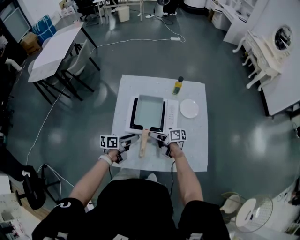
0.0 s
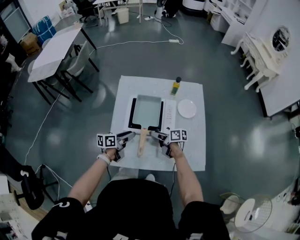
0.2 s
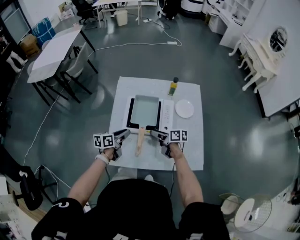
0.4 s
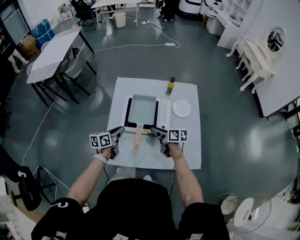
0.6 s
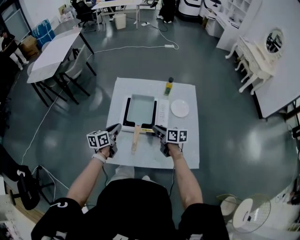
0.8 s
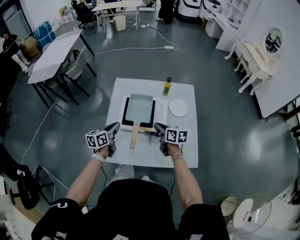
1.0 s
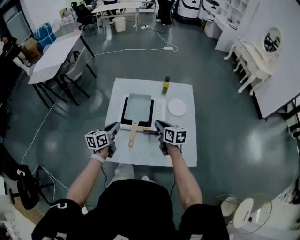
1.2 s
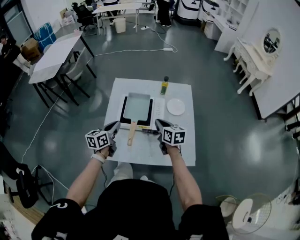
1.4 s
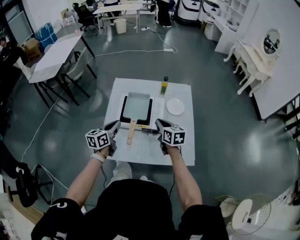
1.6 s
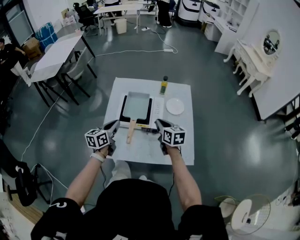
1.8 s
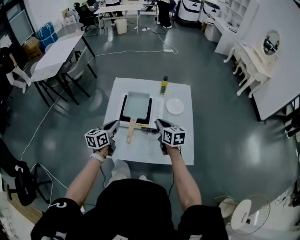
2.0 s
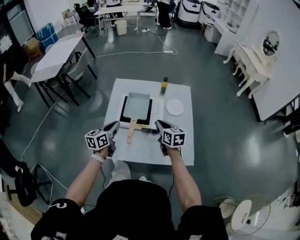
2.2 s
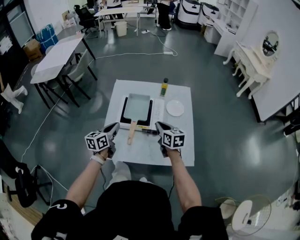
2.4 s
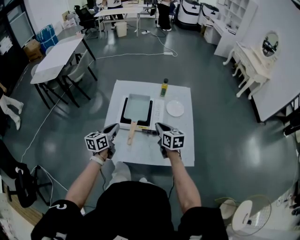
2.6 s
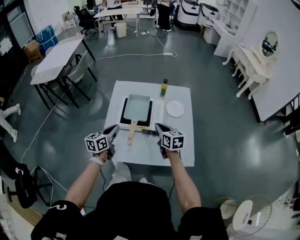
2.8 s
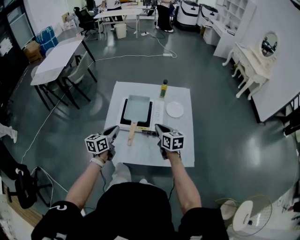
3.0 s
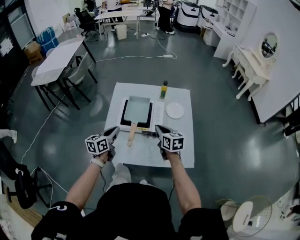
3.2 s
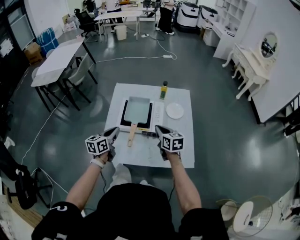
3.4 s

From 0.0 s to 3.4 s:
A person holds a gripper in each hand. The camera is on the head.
From 0.0 s to 1.6 s: The right gripper heads upward, covering roughly 15 cm, changes its angle by about 50 degrees, and closes its fingers.

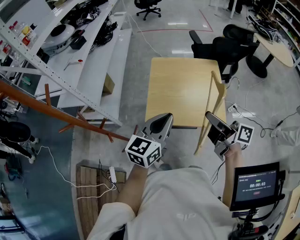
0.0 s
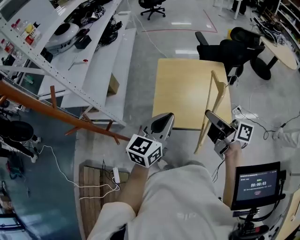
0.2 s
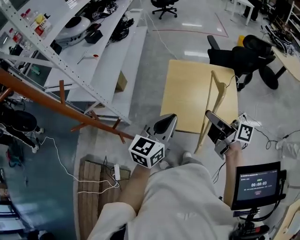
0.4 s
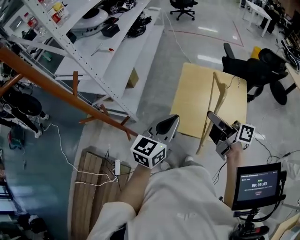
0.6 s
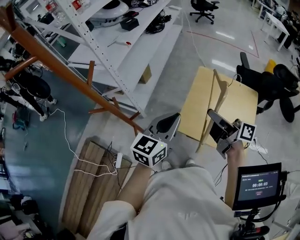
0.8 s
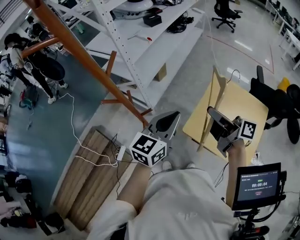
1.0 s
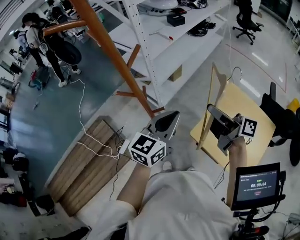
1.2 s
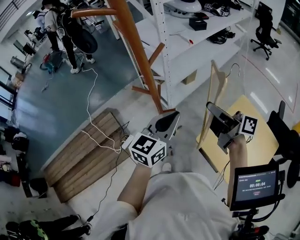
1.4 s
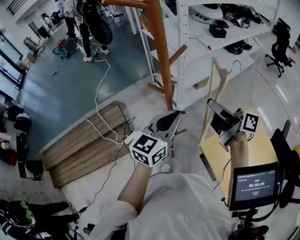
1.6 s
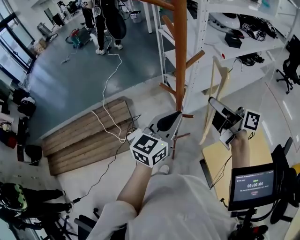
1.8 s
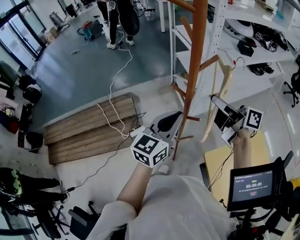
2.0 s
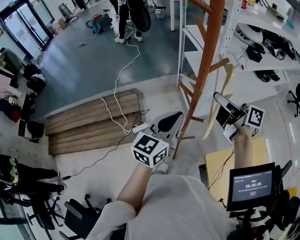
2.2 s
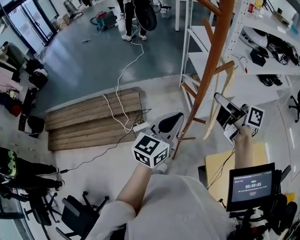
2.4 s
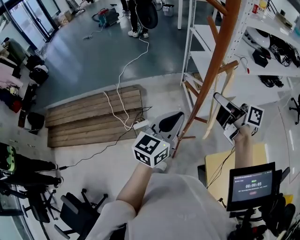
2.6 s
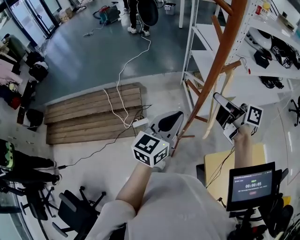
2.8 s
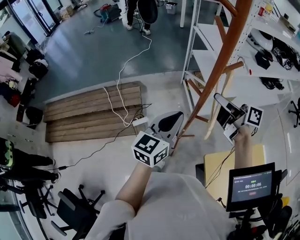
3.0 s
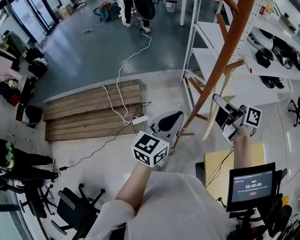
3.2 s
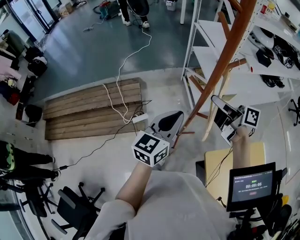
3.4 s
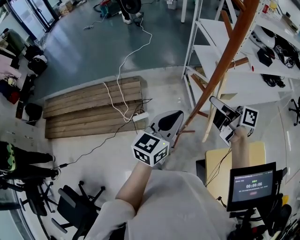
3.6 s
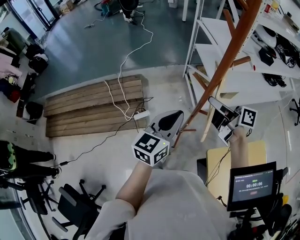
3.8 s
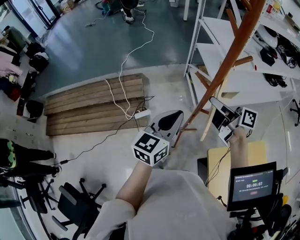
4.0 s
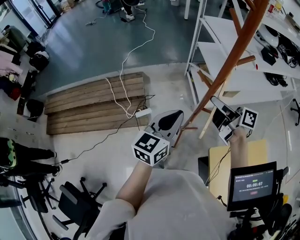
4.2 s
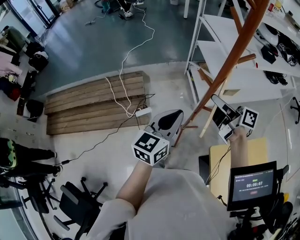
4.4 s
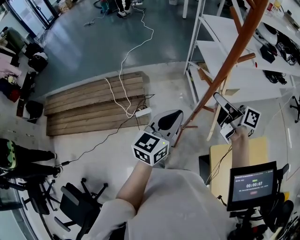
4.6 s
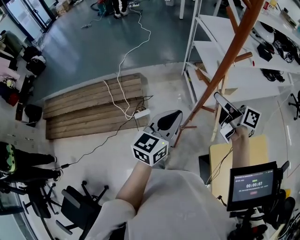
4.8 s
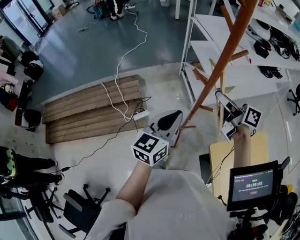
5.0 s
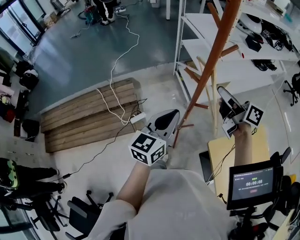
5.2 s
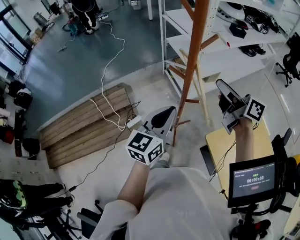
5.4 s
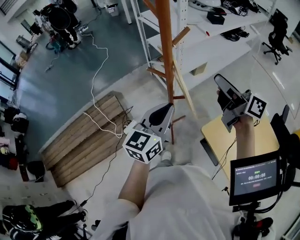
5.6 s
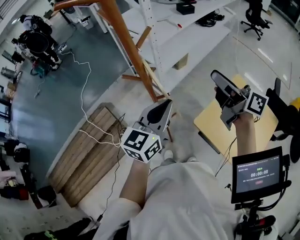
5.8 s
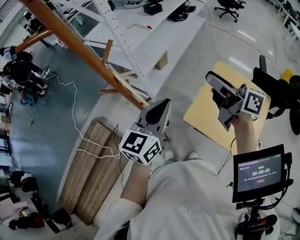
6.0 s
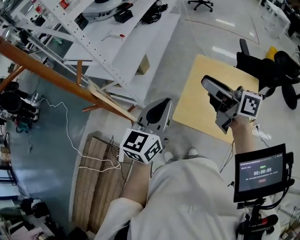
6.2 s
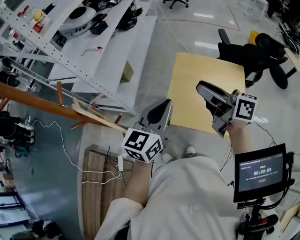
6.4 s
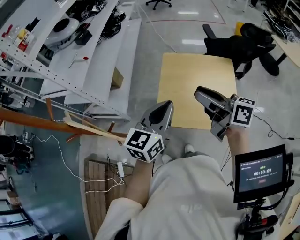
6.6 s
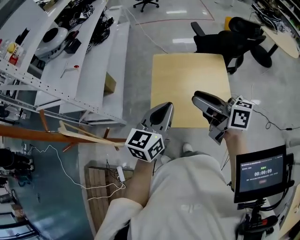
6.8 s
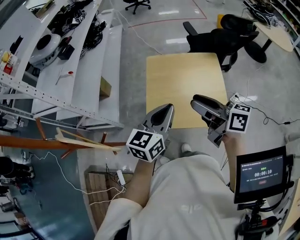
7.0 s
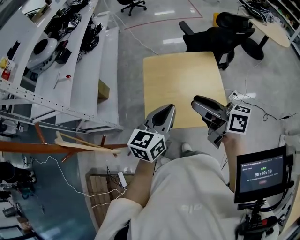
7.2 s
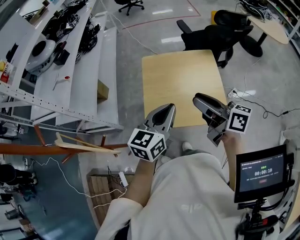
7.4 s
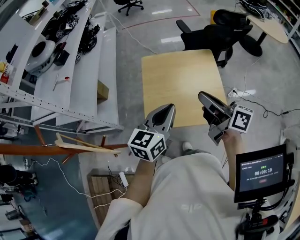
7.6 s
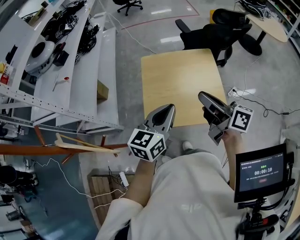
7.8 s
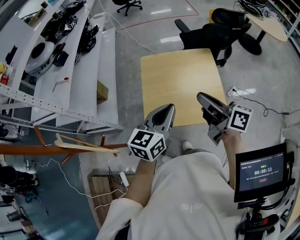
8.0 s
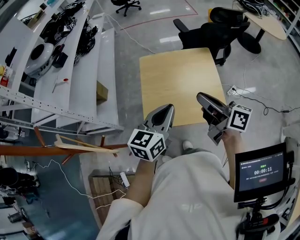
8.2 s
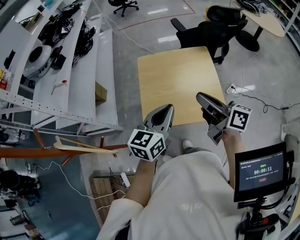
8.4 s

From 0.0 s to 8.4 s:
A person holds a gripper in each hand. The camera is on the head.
From 0.0 s to 1.4 s: The right gripper ends up approximately 40 cm from where it was, and rotates approximately 50 degrees; the left gripper ends up roughly 30 cm from where it was, and turns by about 50 degrees.
From 1.4 s to 2.8 s: The right gripper moves approximately 20 cm, and turns by some 30 degrees; the left gripper shifts by about 15 cm, and swivels about 30 degrees.
From 2.8 s to 4.2 s: The right gripper is displaced downward by about 5 cm. The left gripper moves about 5 cm.
From 4.2 s to 5.6 s: The right gripper travels to the right by about 15 cm, swivels roughly 30 degrees, and opens. The left gripper shifts roughly 10 cm to the right.
From 5.6 s to 7.0 s: The right gripper ends up roughly 40 cm from where it was, and changes its angle by some 50 degrees. The left gripper shifts by approximately 40 cm, and swivels roughly 60 degrees.
From 7.0 s to 8.4 s: The right gripper shifts approximately 5 cm to the right, and closes.

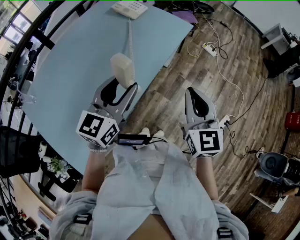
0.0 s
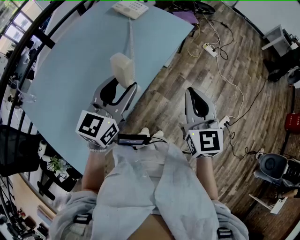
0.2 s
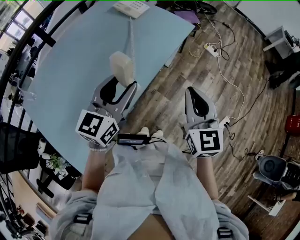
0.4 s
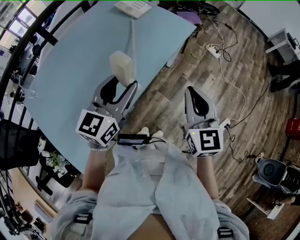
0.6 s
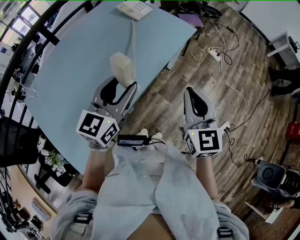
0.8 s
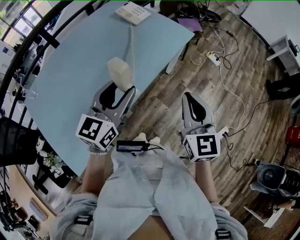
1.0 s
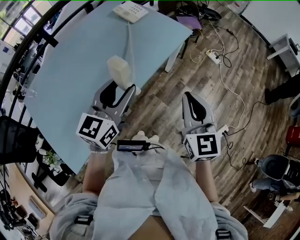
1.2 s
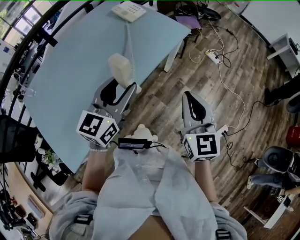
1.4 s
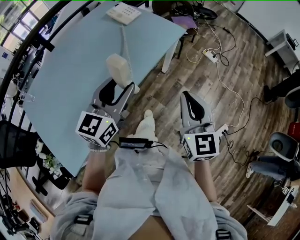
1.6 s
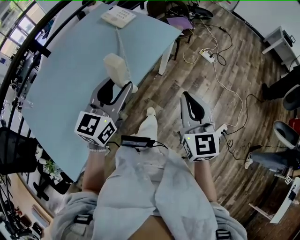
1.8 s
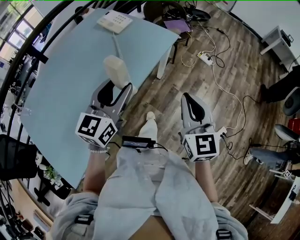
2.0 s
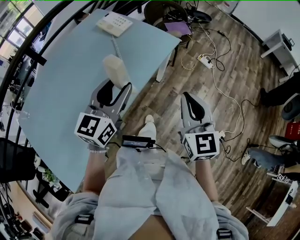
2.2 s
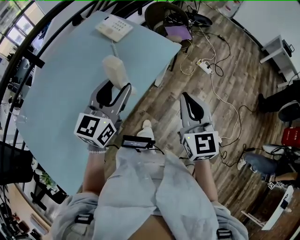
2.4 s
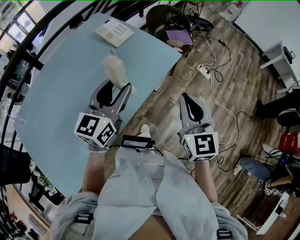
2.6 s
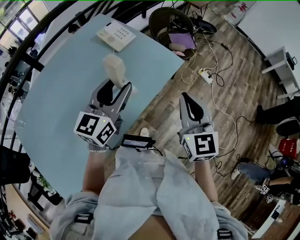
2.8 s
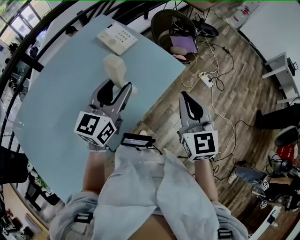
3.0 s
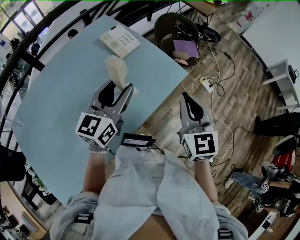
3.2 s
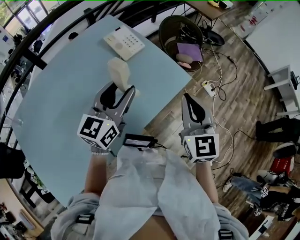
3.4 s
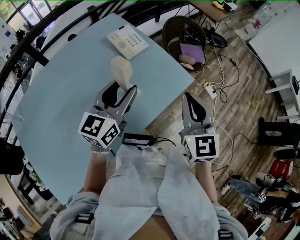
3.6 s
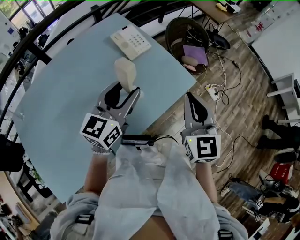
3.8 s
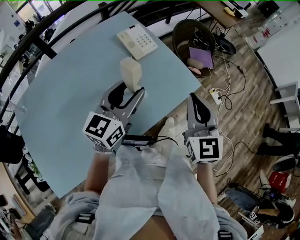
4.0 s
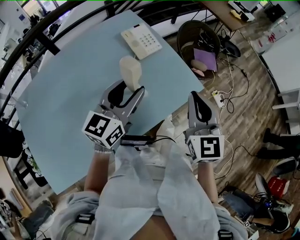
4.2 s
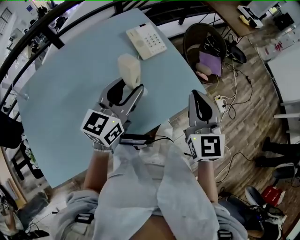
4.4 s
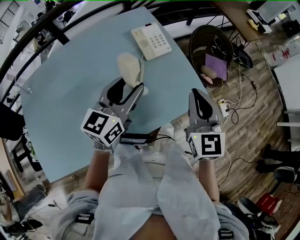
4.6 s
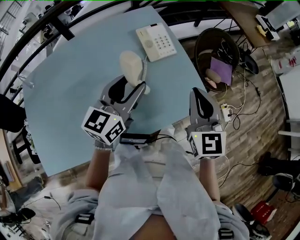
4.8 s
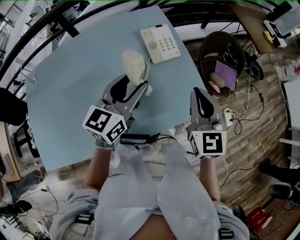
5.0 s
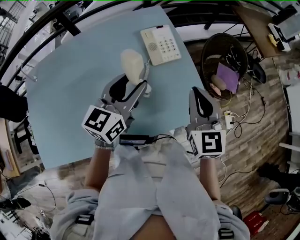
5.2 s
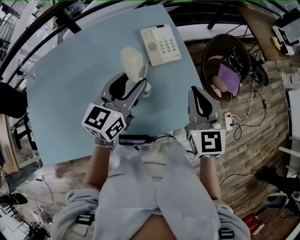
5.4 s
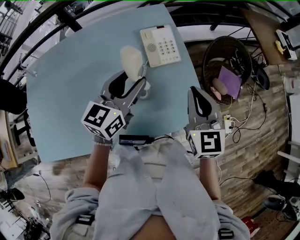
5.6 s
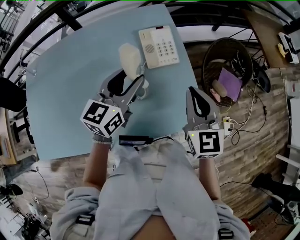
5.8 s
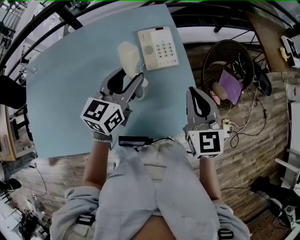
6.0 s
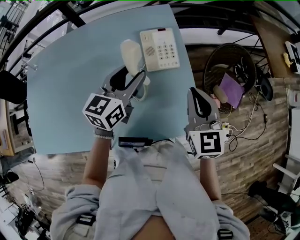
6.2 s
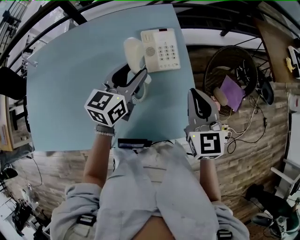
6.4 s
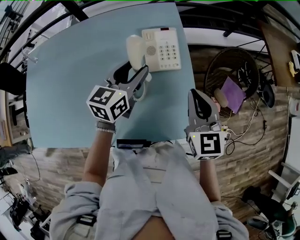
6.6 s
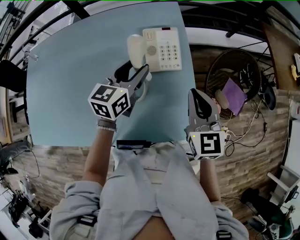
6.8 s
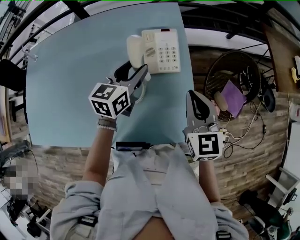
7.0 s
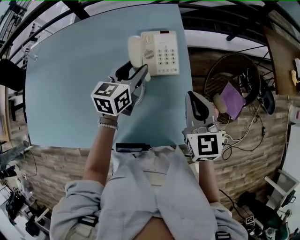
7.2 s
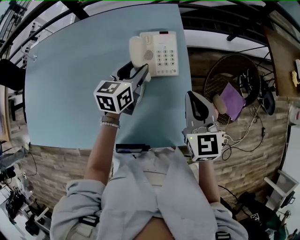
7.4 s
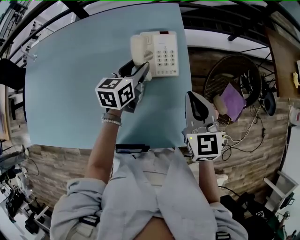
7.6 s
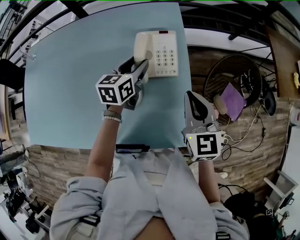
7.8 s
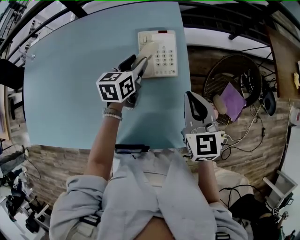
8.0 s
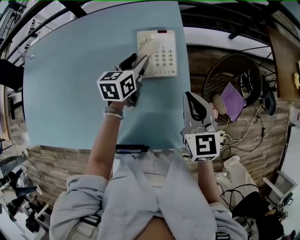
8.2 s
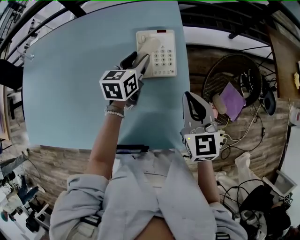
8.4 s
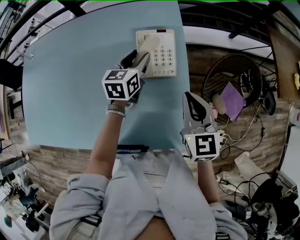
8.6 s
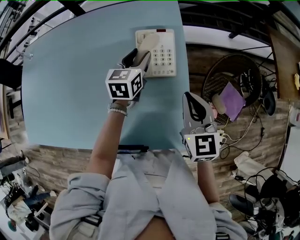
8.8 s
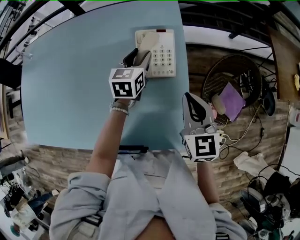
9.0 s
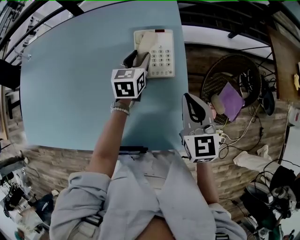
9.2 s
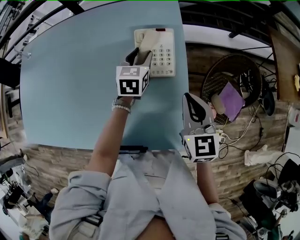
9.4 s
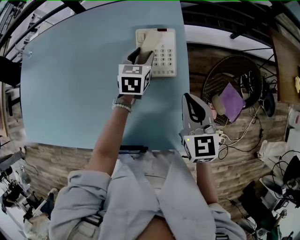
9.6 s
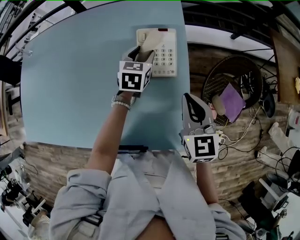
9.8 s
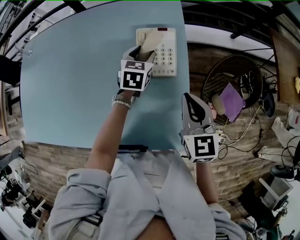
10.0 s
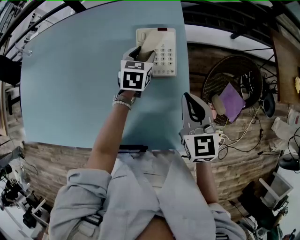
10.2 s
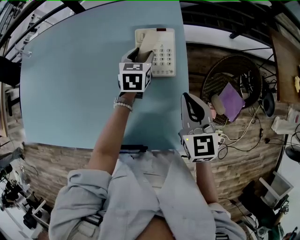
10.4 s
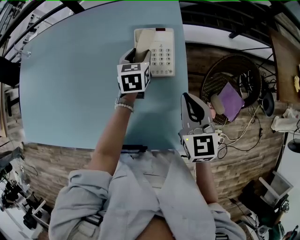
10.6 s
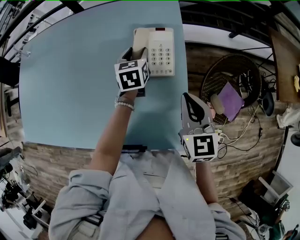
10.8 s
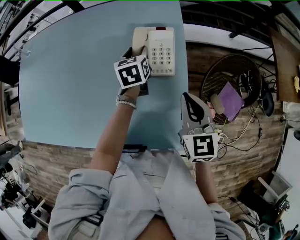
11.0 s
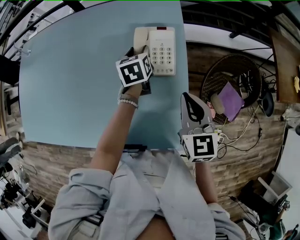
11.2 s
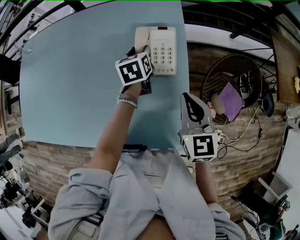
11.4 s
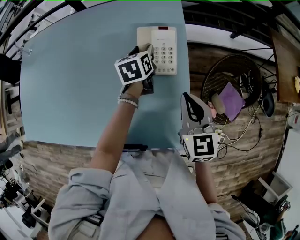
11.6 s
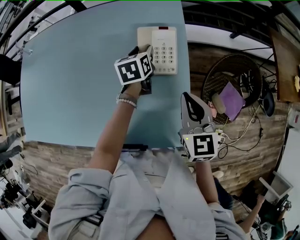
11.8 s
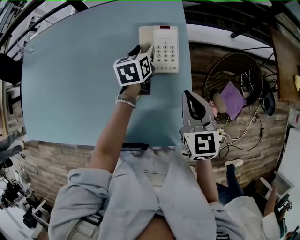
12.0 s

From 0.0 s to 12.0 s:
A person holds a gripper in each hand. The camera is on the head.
From 0.0 s to 1.6 s: Both grippers move to the right, about 5 cm.
From 1.6 s to 3.0 s: Both grippers travel together forward, some 25 cm.
From 3.0 s to 4.4 s: The right gripper is displaced forward by roughly 10 cm. Meanwhile the left gripper moves forward, roughly 5 cm.
From 4.4 s to 6.0 s: The two grippers go about 15 cm forward. The right gripper changes its angle by roughly 20 degrees. The left gripper rotates roughly 20 degrees.
From 6.0 s to 7.6 s: The right gripper shifts approximately 5 cm forward, while the left gripper goes roughly 15 cm downward and forward, and changes its angle by roughly 20 degrees.
From 7.6 s to 9.0 s: The left gripper moves forward, about 5 cm.
From 9.0 s to 10.4 s: The grippers make only small movements.
